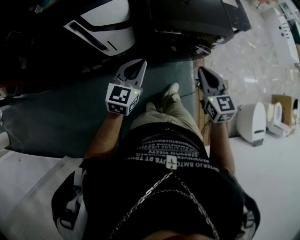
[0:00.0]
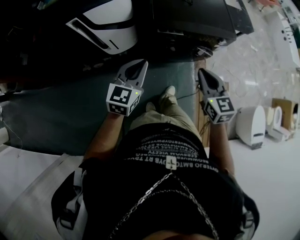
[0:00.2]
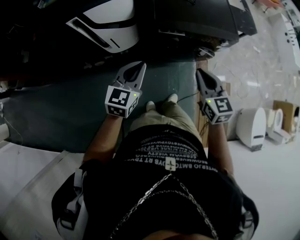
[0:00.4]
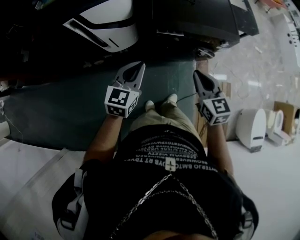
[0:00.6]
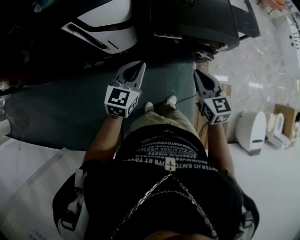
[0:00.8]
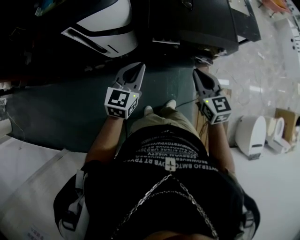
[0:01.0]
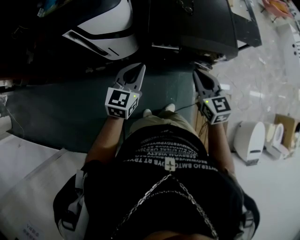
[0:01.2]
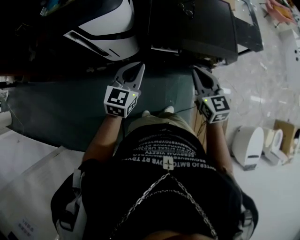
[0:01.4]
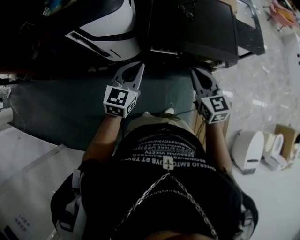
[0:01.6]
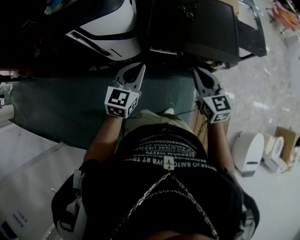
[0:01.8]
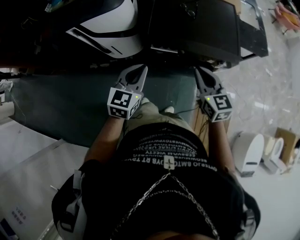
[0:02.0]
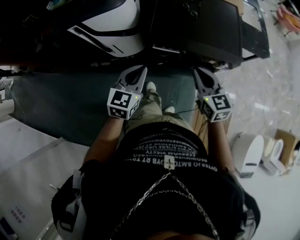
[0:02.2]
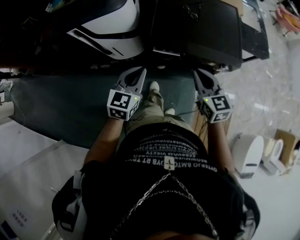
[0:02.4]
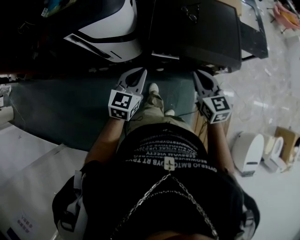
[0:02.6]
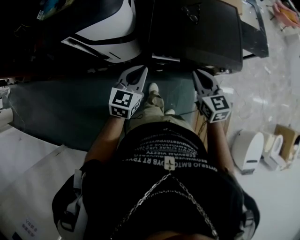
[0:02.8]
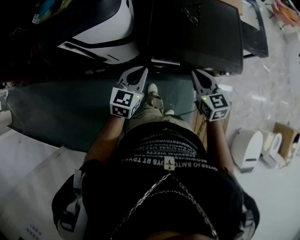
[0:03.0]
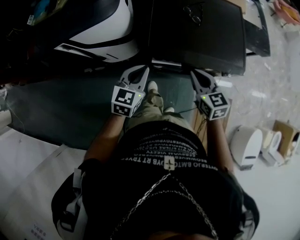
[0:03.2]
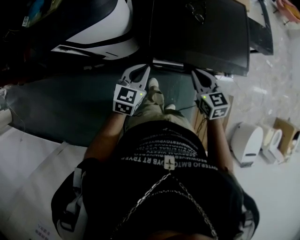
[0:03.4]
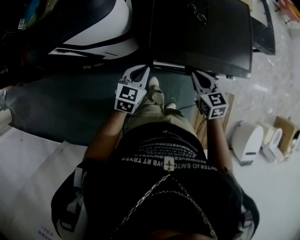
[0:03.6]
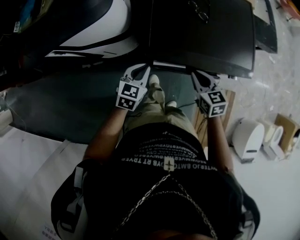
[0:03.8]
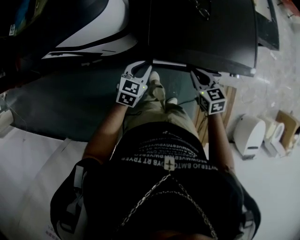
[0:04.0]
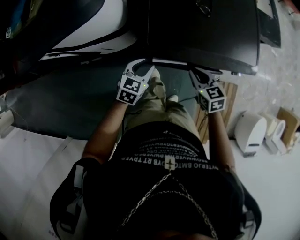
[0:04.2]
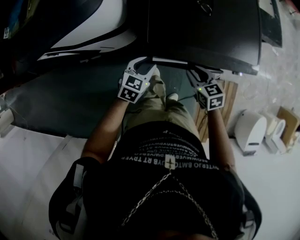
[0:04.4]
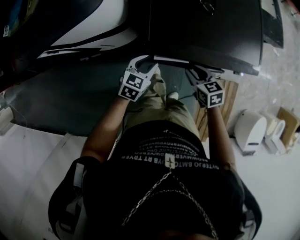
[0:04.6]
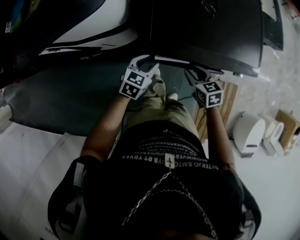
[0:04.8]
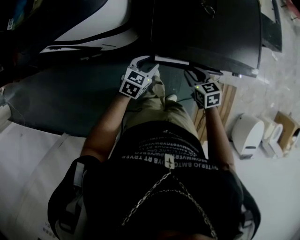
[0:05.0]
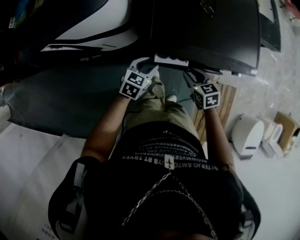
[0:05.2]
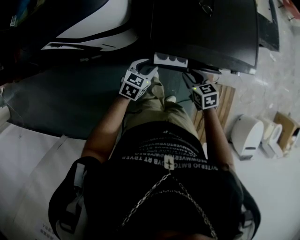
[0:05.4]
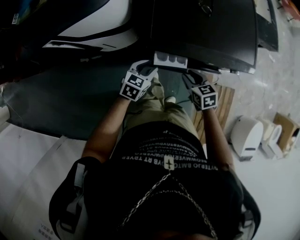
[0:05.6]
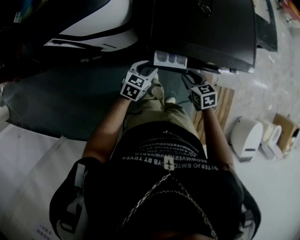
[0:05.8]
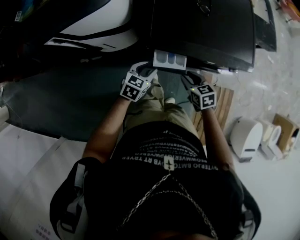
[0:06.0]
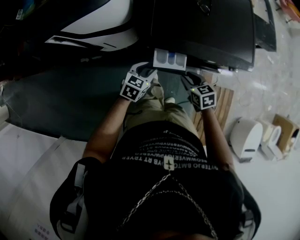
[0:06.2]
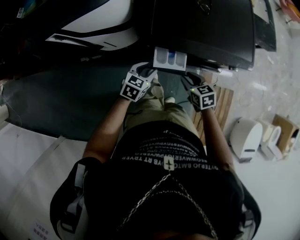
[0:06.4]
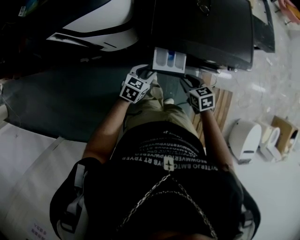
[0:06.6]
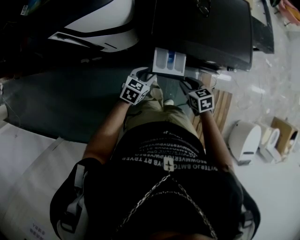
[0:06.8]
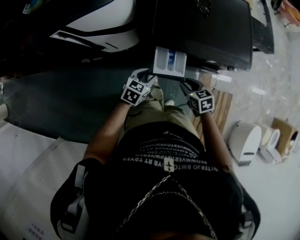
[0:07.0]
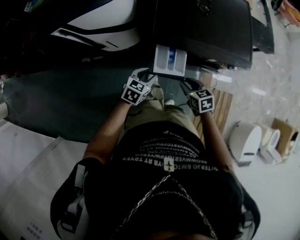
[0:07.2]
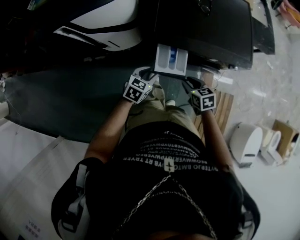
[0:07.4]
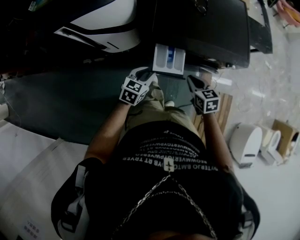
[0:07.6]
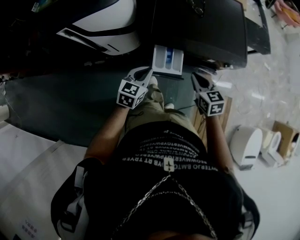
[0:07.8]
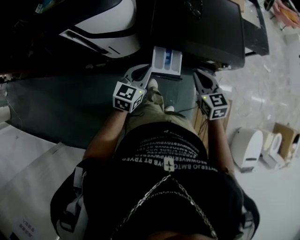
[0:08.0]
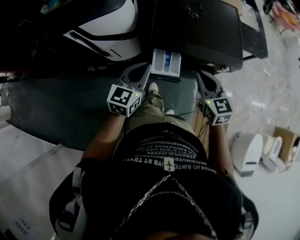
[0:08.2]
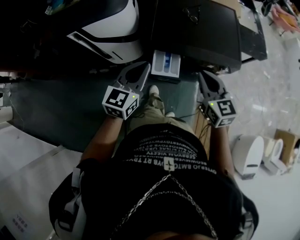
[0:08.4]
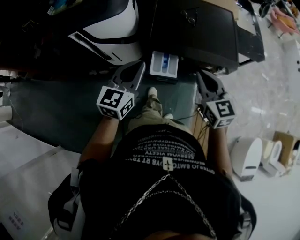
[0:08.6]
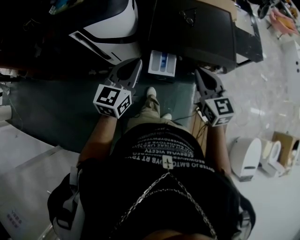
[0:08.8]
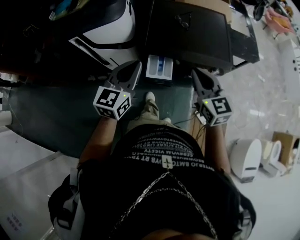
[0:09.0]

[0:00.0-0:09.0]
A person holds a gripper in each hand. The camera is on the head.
0.0 to 1.6 s: Both grippers travel together forward and to the right, about 15 cm.
1.6 to 3.0 s: Both grippers travel together forward and downward, roughly 10 cm.
3.0 to 4.4 s: The right gripper heads downward, covering about 20 cm, changes its angle by approximately 20 degrees, and opens up; the left gripper is displaced downward and forward by some 20 cm, swivels some 20 degrees, and opens up.
4.4 to 6.0 s: Both grippers move backward, about 5 cm.
6.0 to 7.6 s: Both grippers move backward, approximately 5 cm. The right gripper closes up.
7.6 to 9.0 s: The grippers both shift upward by some 30 cm. The right gripper swivels some 30 degrees; the left gripper rotates roughly 30 degrees, and closes up.

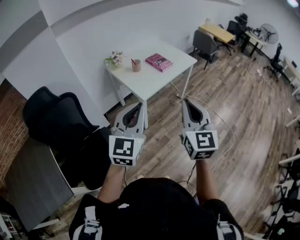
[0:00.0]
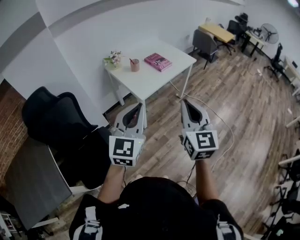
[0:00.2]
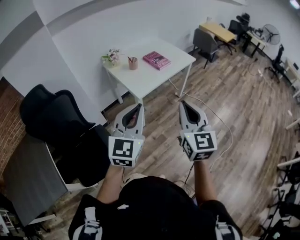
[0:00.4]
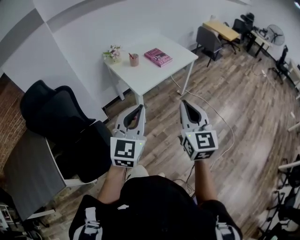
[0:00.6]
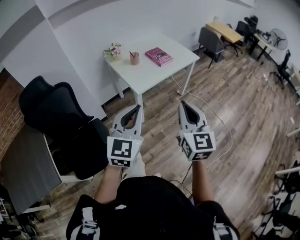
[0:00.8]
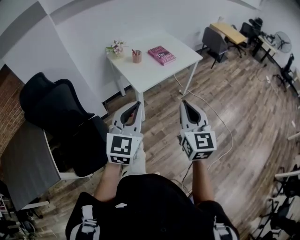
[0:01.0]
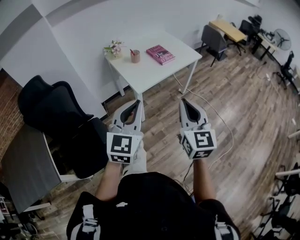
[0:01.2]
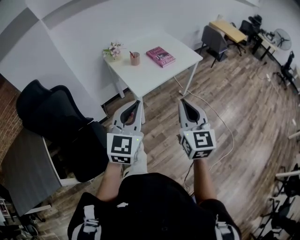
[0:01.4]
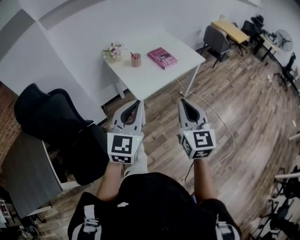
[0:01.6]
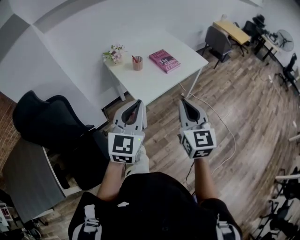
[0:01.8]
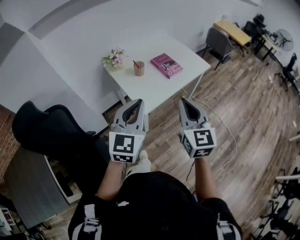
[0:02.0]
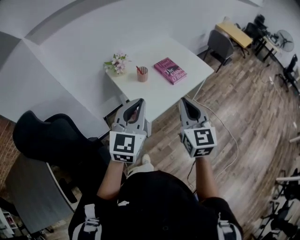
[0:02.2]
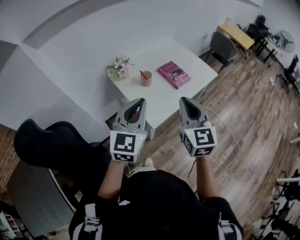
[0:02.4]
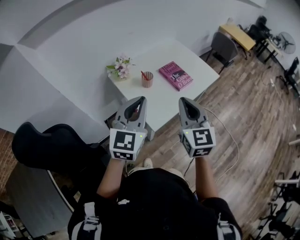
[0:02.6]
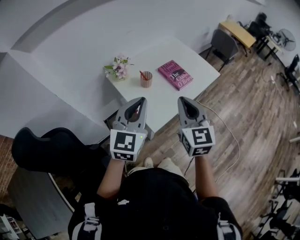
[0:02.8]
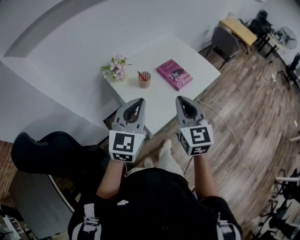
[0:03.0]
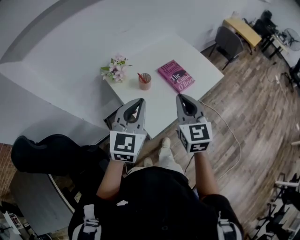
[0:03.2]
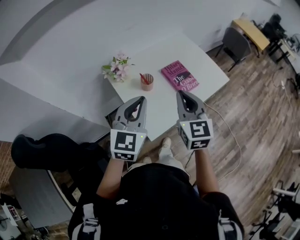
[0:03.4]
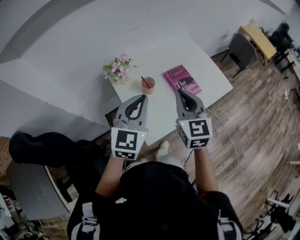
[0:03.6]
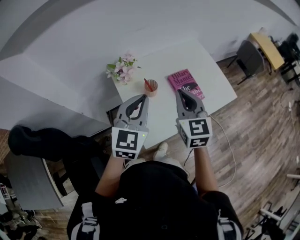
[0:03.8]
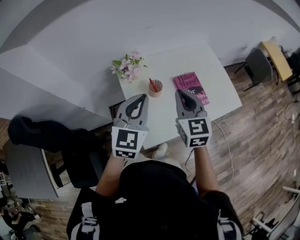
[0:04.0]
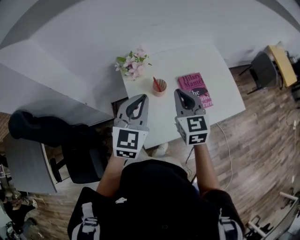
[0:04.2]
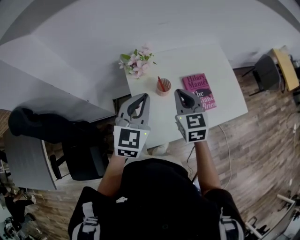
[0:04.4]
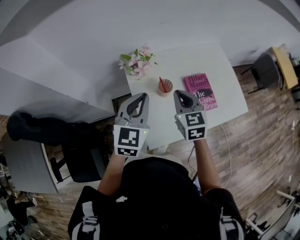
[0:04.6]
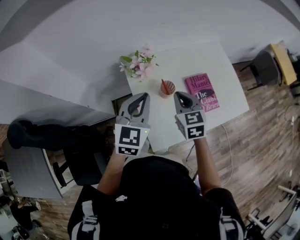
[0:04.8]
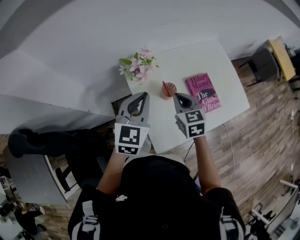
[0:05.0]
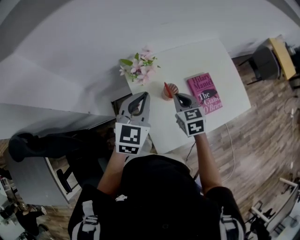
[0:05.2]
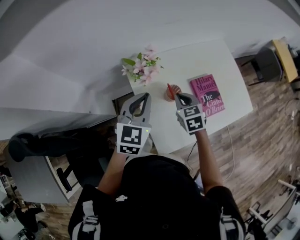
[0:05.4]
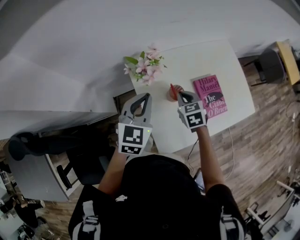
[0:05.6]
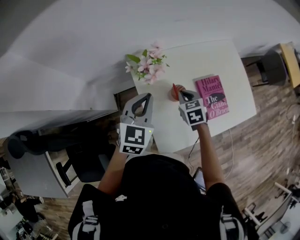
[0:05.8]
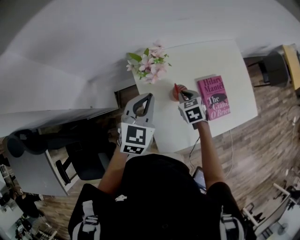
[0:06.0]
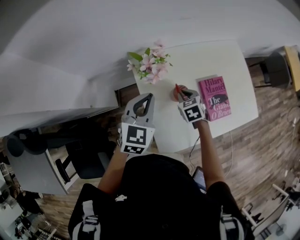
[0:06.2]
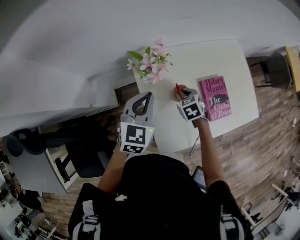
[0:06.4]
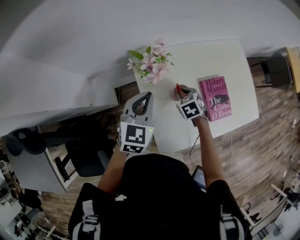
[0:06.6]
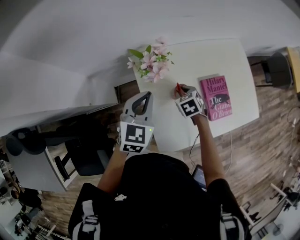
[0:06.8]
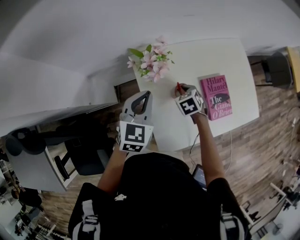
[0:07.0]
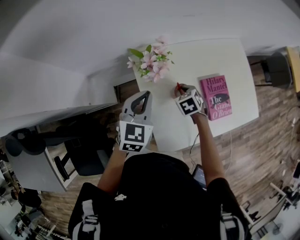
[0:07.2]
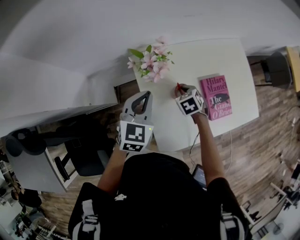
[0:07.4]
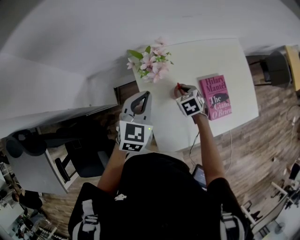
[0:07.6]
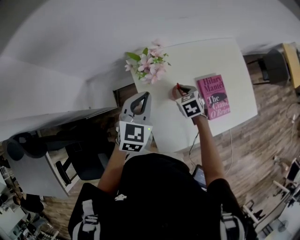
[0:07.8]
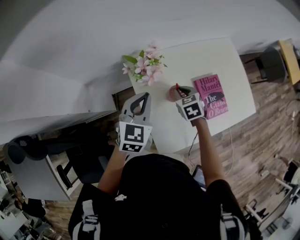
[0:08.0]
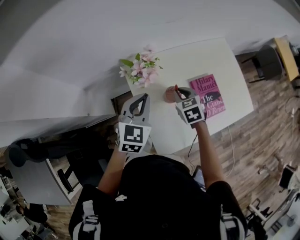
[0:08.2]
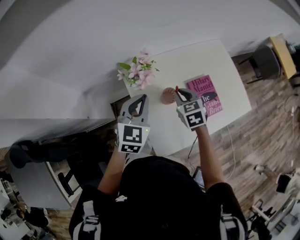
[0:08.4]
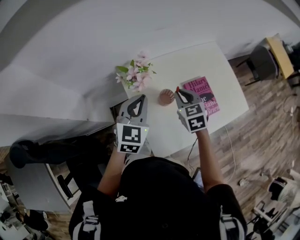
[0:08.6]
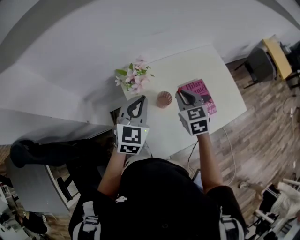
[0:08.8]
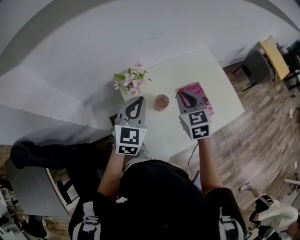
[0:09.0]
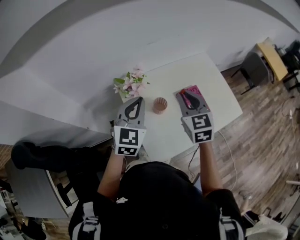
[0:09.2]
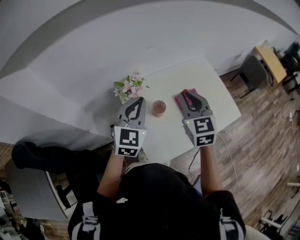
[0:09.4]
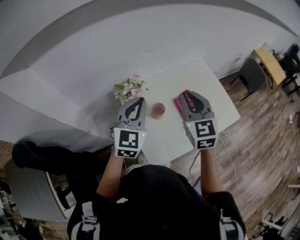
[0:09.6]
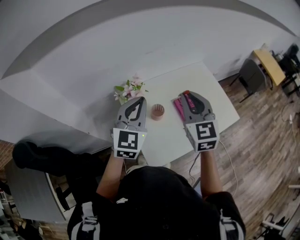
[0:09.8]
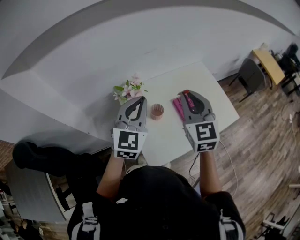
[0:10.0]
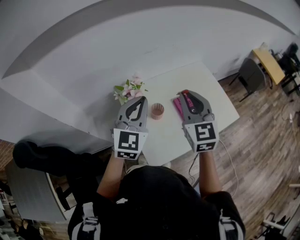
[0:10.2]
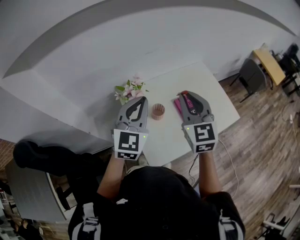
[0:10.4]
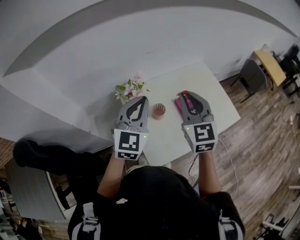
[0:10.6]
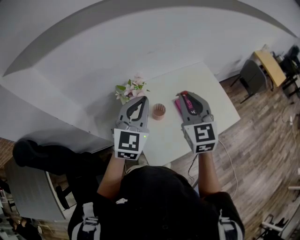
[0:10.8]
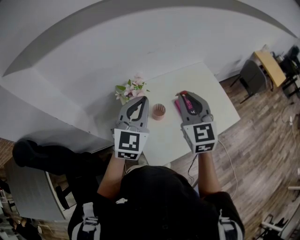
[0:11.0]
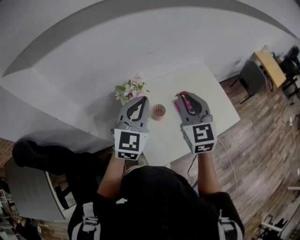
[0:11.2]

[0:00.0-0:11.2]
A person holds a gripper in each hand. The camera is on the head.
0.0 to 1.6 s: The right gripper travels forward and downward by approximately 15 cm. The left gripper heads forward, covering roughly 10 cm.
1.6 to 3.2 s: Both grippers travel together forward, roughly 30 cm.
3.2 to 4.8 s: The grippers both shift forward and downward by roughly 20 cm. The right gripper rotates some 30 degrees.
4.8 to 6.4 s: The left gripper goes some 10 cm downward and forward. The right gripper heads downward and forward, covering about 20 cm, and changes its angle by approximately 30 degrees.
6.4 to 8.0 s: There are only small adjustments of the grippers.
8.0 to 9.6 s: The right gripper moves upward, roughly 30 cm, and points its fingers approximately 40 degrees further upward; the left gripper moves upward and to the right, roughly 15 cm.
9.6 to 11.2 s: There are only small adjustments of the grippers.

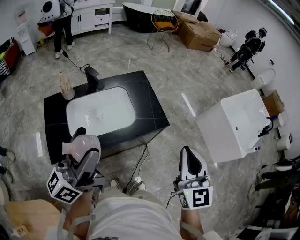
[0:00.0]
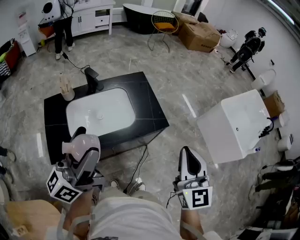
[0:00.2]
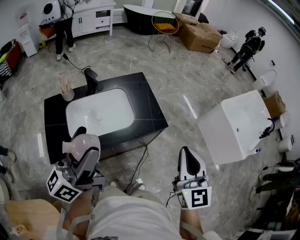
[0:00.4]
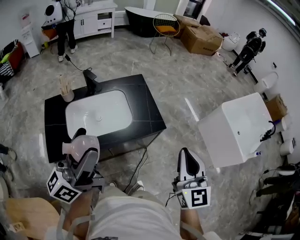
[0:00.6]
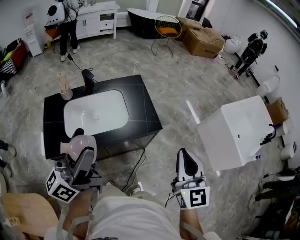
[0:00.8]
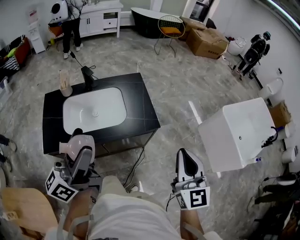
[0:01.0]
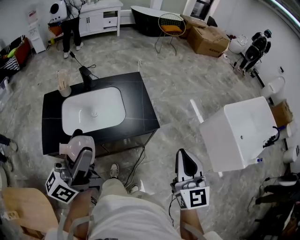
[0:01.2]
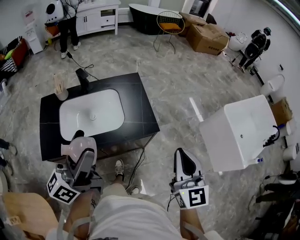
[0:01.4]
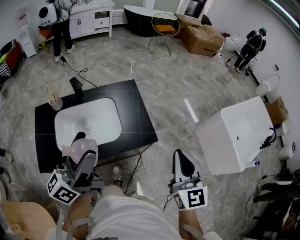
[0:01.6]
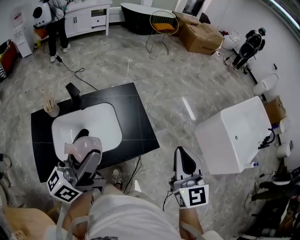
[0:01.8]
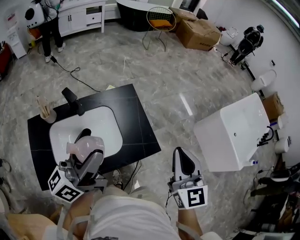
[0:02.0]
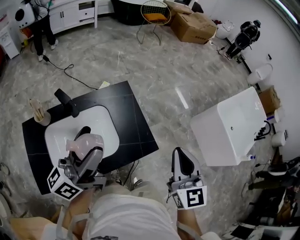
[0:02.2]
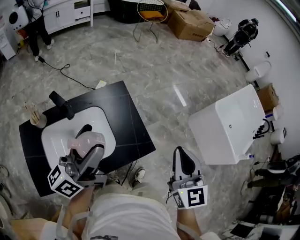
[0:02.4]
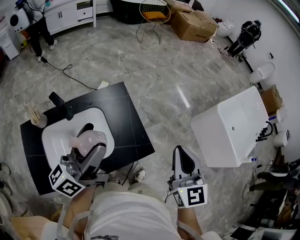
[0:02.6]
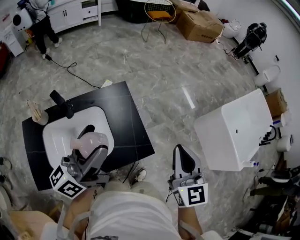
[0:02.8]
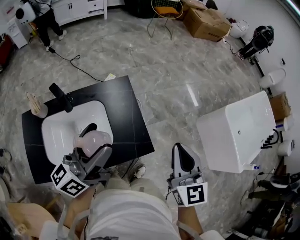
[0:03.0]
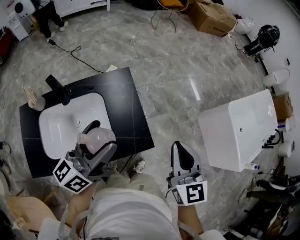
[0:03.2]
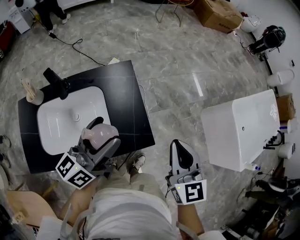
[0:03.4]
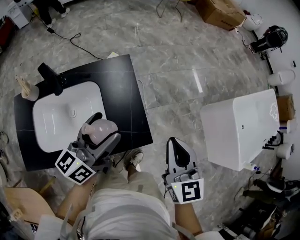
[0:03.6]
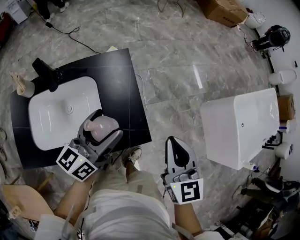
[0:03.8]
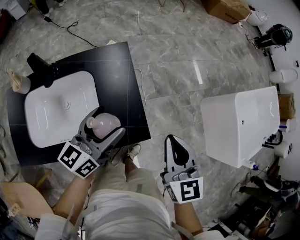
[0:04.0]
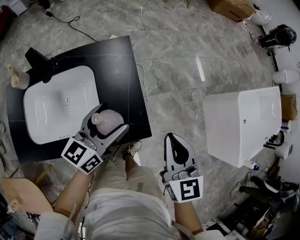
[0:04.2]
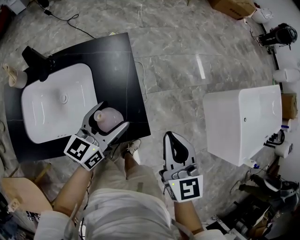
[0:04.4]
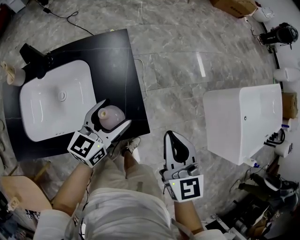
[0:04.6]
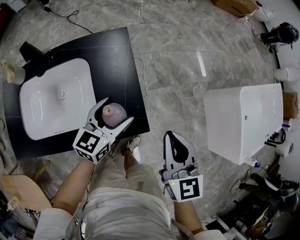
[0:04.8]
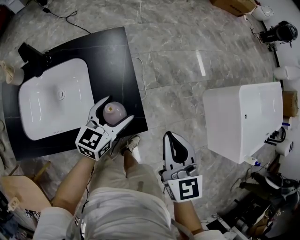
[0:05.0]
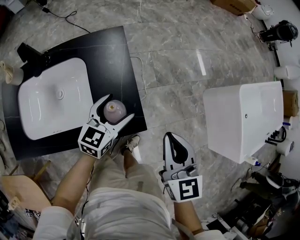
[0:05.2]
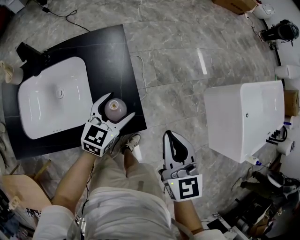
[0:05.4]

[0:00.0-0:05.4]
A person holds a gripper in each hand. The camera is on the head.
0.0 to 1.4 s: Both grippers travel together to the right, some 10 cm.
1.4 to 2.8 s: The two grippers go about 20 cm forward.
2.8 to 4.0 s: The left gripper goes approximately 20 cm downward and to the right, and turns by about 20 degrees, while the right gripper shifts approximately 15 cm downward.
4.0 to 5.4 s: The left gripper goes roughly 15 cm downward and to the right, and turns by approximately 30 degrees. The right gripper changes place by roughly 5 cm.
